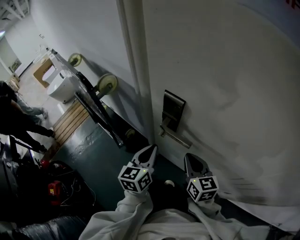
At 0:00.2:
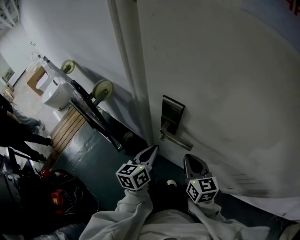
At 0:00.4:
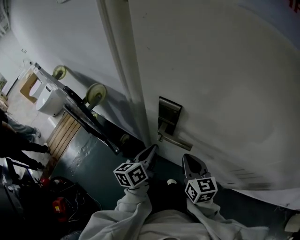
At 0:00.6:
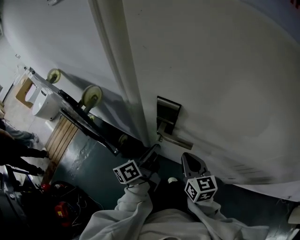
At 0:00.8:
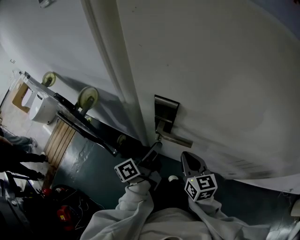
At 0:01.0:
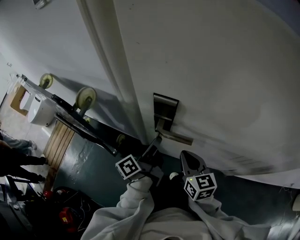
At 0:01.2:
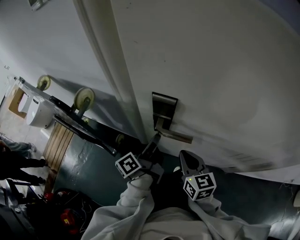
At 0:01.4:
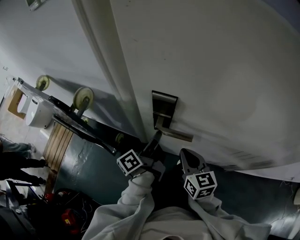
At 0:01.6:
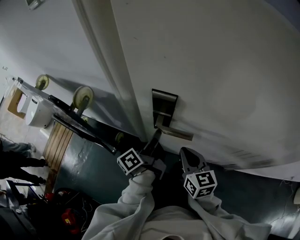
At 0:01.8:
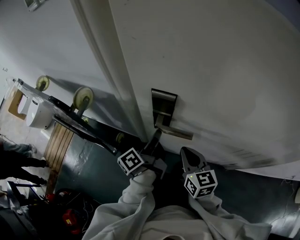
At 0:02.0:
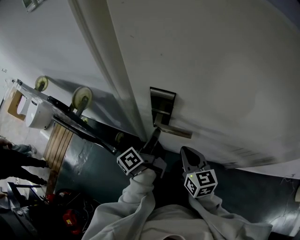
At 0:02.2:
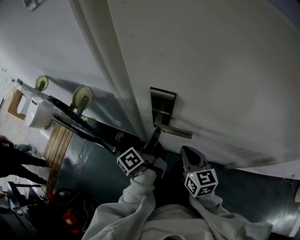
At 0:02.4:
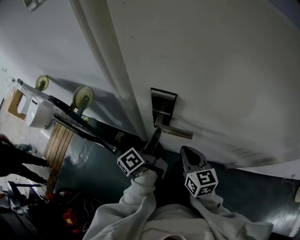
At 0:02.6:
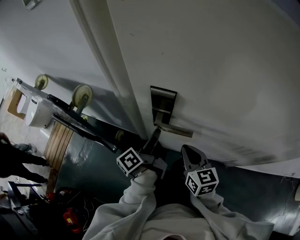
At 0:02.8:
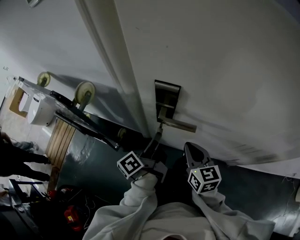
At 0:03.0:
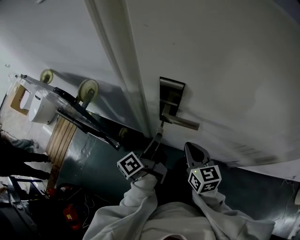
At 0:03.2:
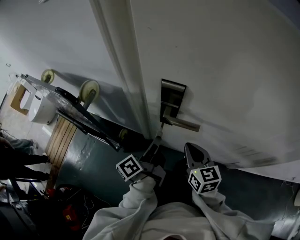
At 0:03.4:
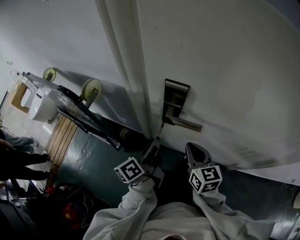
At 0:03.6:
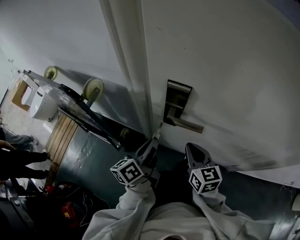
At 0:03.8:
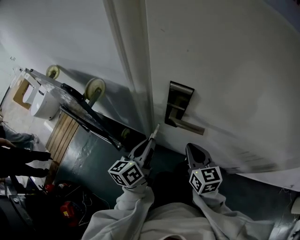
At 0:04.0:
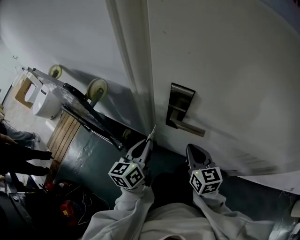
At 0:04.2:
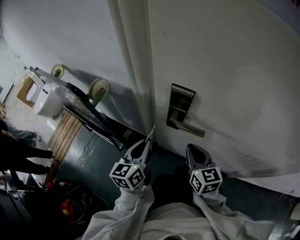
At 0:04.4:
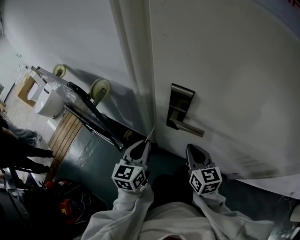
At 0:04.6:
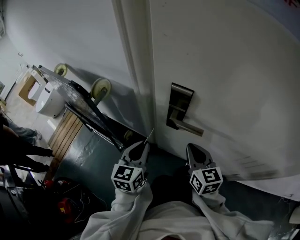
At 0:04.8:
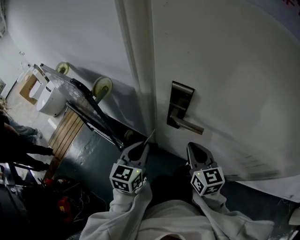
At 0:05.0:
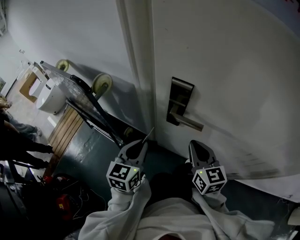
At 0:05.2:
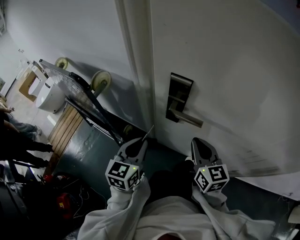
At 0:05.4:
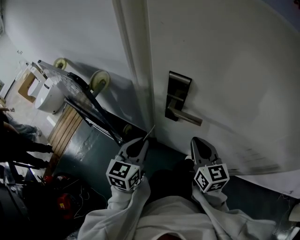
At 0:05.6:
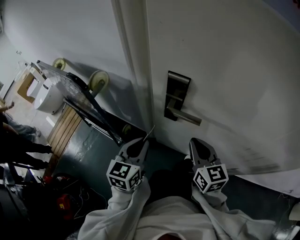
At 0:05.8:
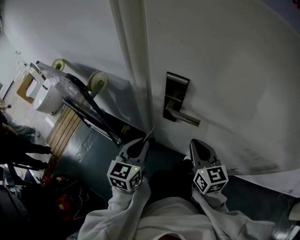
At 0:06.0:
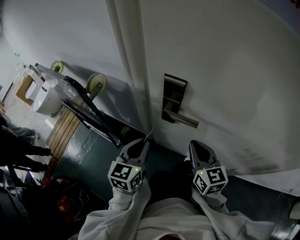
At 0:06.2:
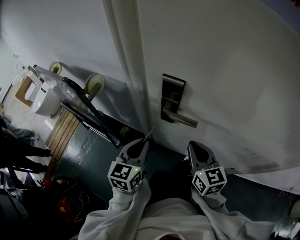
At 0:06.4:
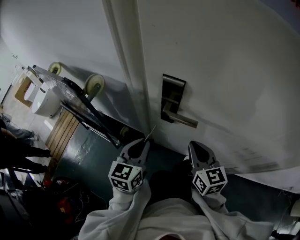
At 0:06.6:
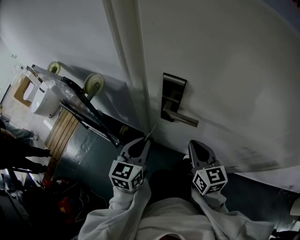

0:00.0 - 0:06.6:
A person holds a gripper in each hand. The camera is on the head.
0:00.0 - 0:01.6: The left gripper shifts about 5 cm forward, rolls counterclockwise, seen from behind, by about 60 degrees, and opens, then closes once more.
0:01.6 - 0:03.2: The left gripper shifts roughly 5 cm backward.
0:03.2 - 0:05.0: The left gripper is displaced to the left by approximately 5 cm, and rolls clockwise, seen from behind, by approximately 70 degrees.
0:05.0 - 0:06.6: There are only small adjustments of the grippers.

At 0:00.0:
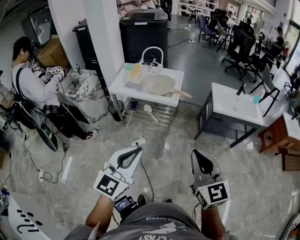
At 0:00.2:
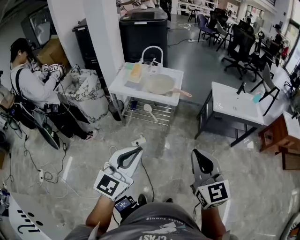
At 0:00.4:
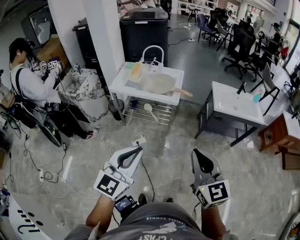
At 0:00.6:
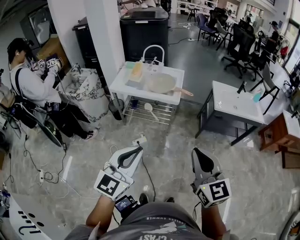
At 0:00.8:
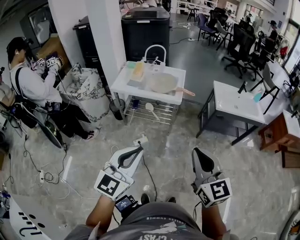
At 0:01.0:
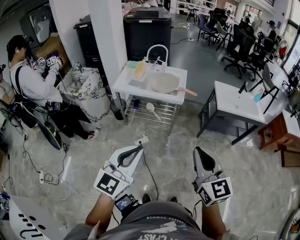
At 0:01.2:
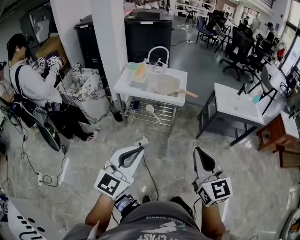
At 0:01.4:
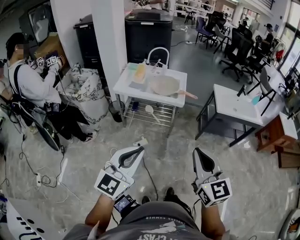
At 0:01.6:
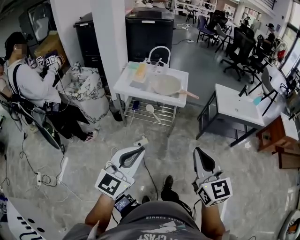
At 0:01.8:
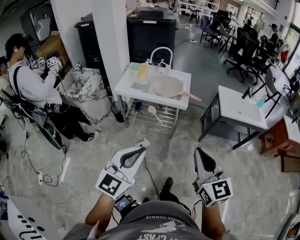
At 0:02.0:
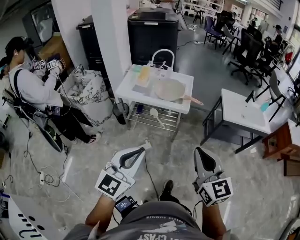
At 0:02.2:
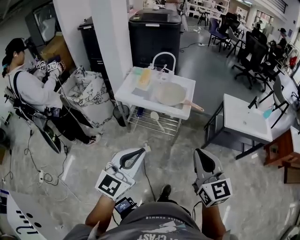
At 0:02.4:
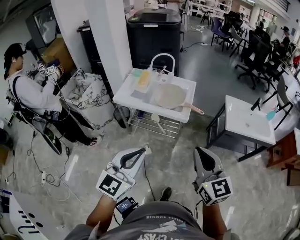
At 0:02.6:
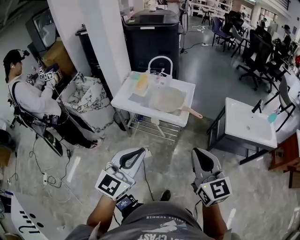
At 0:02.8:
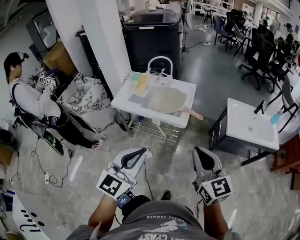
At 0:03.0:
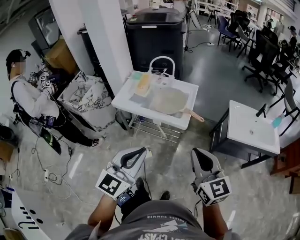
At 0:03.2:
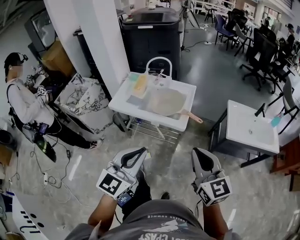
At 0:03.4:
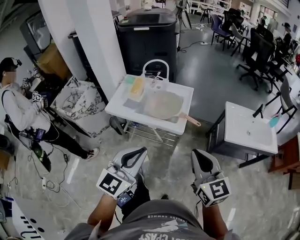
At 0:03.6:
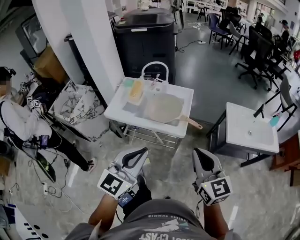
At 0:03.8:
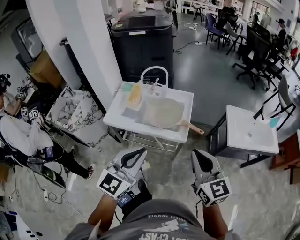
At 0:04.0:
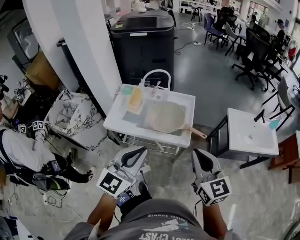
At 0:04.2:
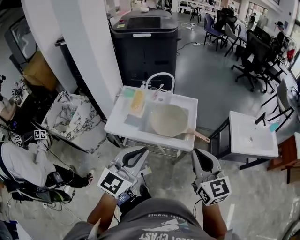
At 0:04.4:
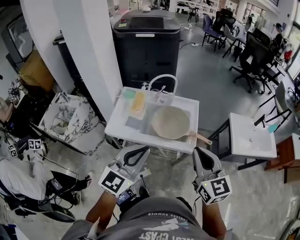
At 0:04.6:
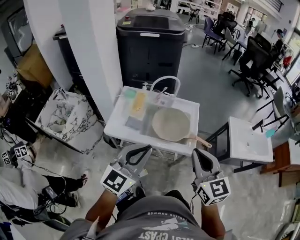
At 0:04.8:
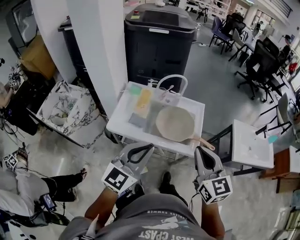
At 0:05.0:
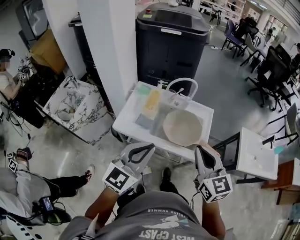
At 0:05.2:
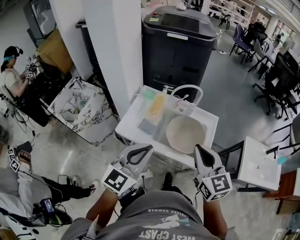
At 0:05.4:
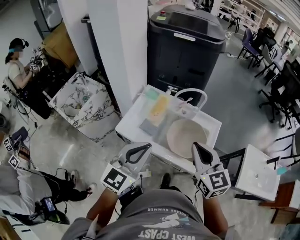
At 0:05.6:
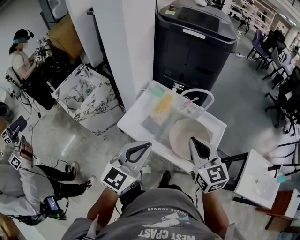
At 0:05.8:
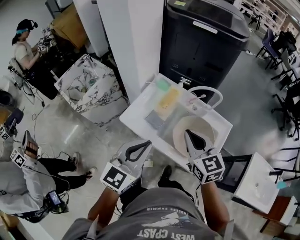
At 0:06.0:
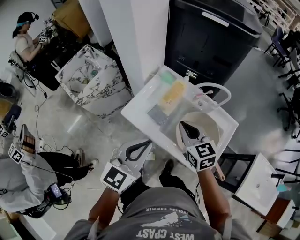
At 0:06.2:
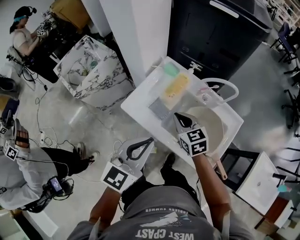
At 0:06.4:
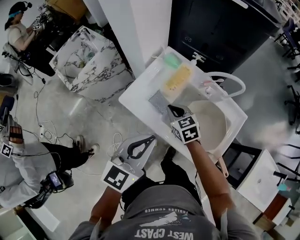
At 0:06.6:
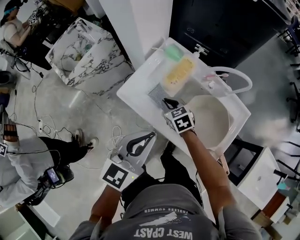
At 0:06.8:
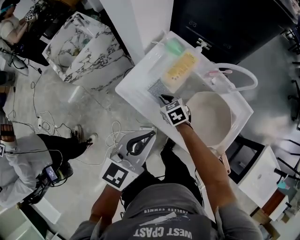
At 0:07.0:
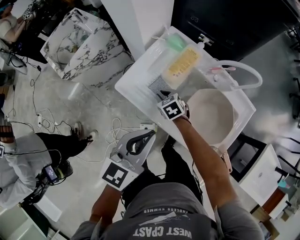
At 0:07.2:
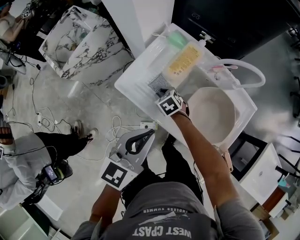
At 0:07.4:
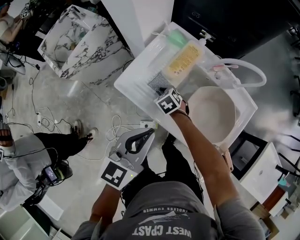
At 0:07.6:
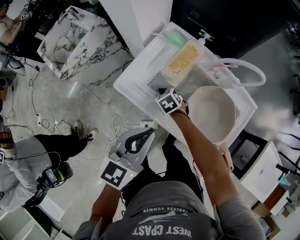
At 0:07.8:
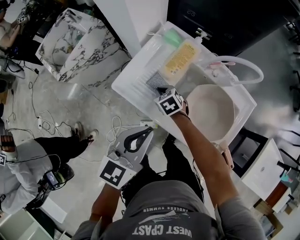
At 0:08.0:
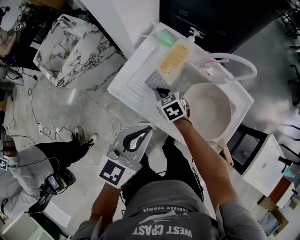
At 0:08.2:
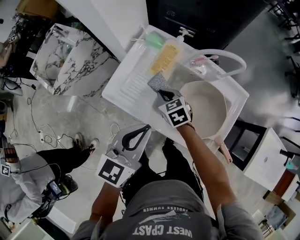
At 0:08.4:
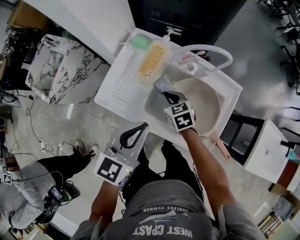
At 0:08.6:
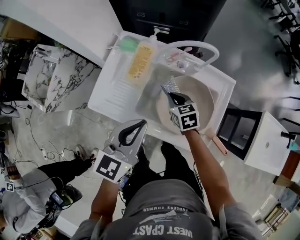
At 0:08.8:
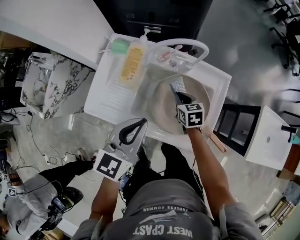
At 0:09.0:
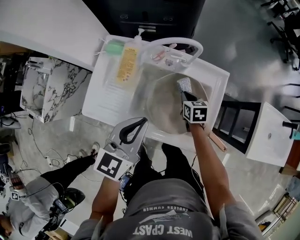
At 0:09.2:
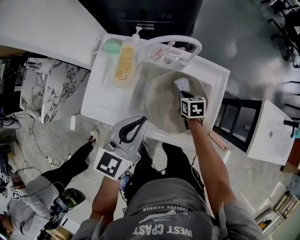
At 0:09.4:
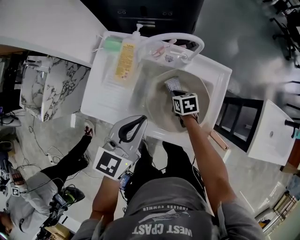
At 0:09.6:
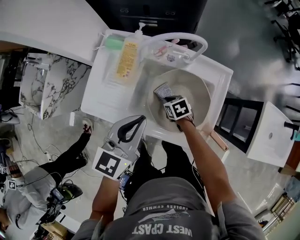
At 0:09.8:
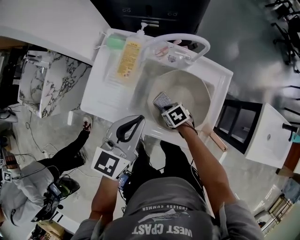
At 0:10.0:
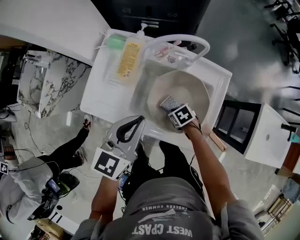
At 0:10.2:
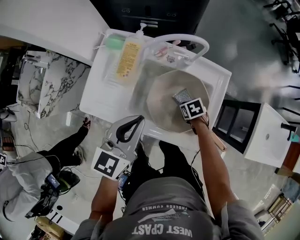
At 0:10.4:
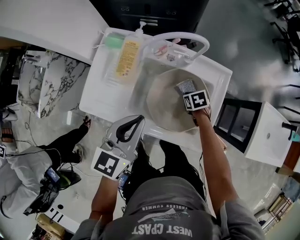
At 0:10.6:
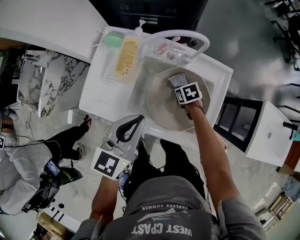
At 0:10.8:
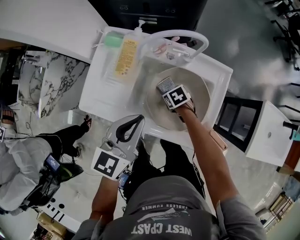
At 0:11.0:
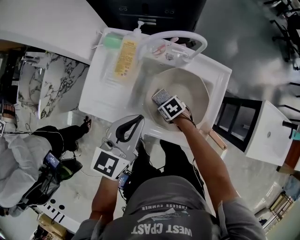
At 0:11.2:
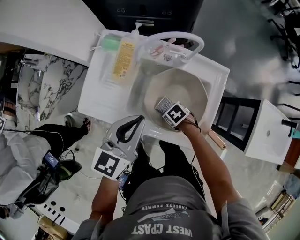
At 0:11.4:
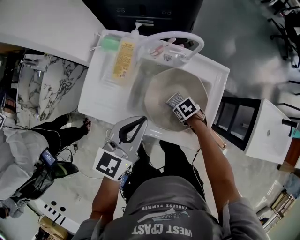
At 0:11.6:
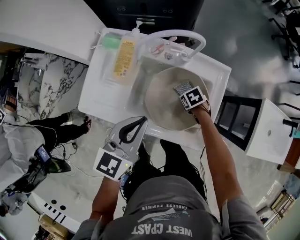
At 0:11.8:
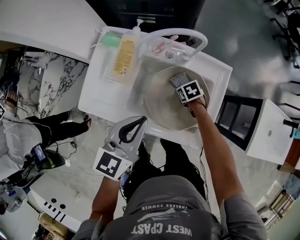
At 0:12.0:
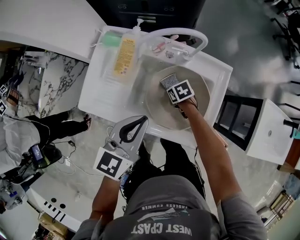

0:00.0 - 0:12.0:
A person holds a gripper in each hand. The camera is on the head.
0:00.0 - 0:01.6: Both grippers move to the left, about 10 cm.
0:01.6 - 0:03.0: The grippers both shift forward and to the right by roughly 30 cm.
0:03.0 - 0:04.4: The grippers both shift forward and to the left by about 30 cm.
0:04.4 - 0:06.0: The right gripper changes place by roughly 40 cm, and rotates about 40 degrees, while the left gripper shifts by about 20 cm, and turns by some 30 degrees.
0:06.0 - 0:07.6: The left gripper shifts some 15 cm downward; the right gripper is displaced downward by approximately 35 cm, points its fingers roughly 30 degrees further downward, and opens, then closes once more.
0:07.6 - 0:09.0: The left gripper shifts by roughly 15 cm, and rotates roughly 20 degrees, while the right gripper travels upward and back again, about 10 cm each way, and rotates around the line of its fingers by some 50 degrees, clockwise from behind.
0:09.0 - 0:10.4: The right gripper heads downward, covering about 5 cm, and turns by some 20 degrees.

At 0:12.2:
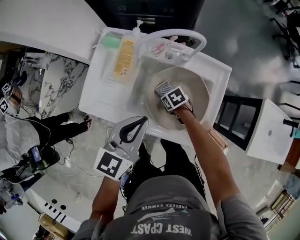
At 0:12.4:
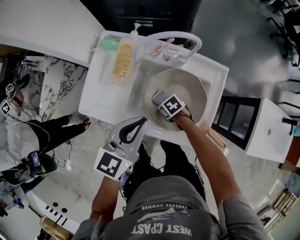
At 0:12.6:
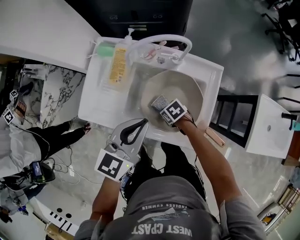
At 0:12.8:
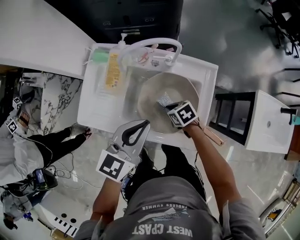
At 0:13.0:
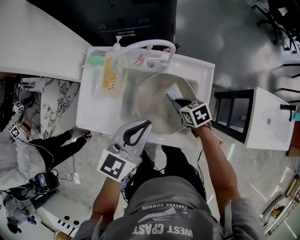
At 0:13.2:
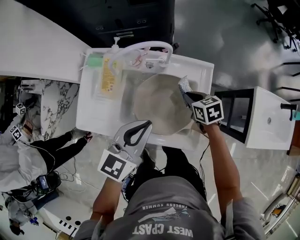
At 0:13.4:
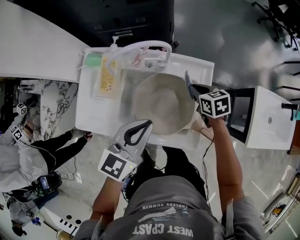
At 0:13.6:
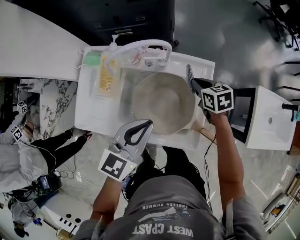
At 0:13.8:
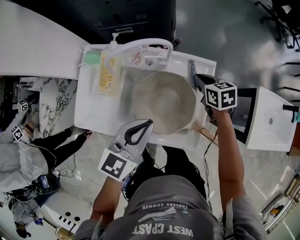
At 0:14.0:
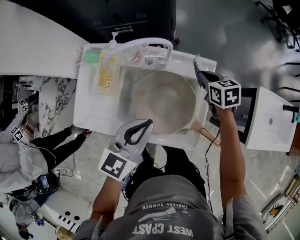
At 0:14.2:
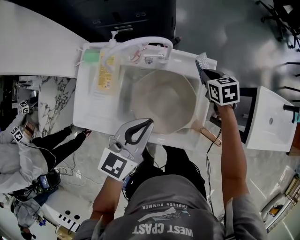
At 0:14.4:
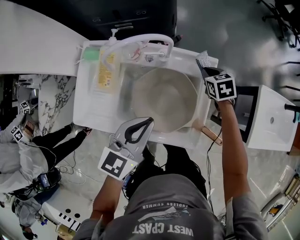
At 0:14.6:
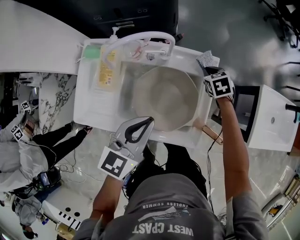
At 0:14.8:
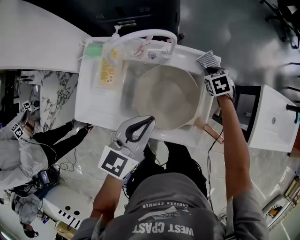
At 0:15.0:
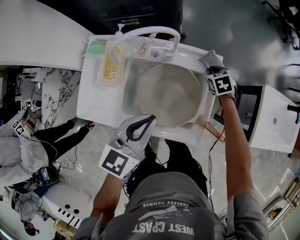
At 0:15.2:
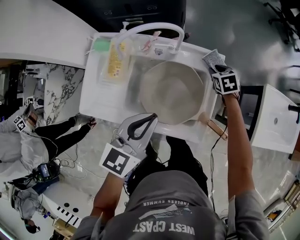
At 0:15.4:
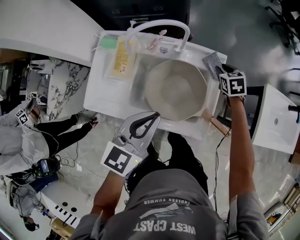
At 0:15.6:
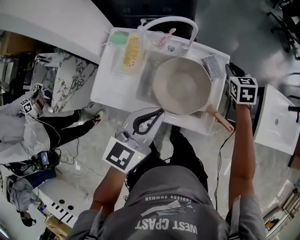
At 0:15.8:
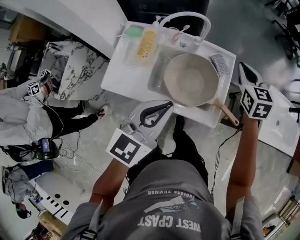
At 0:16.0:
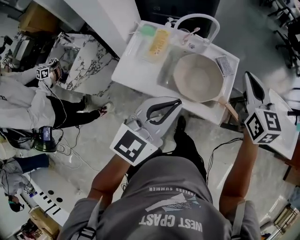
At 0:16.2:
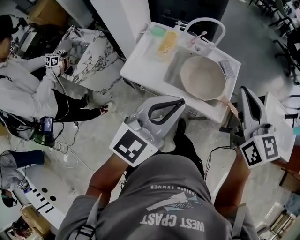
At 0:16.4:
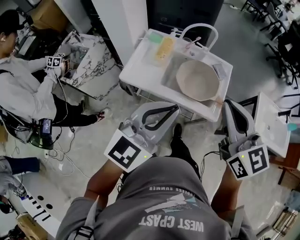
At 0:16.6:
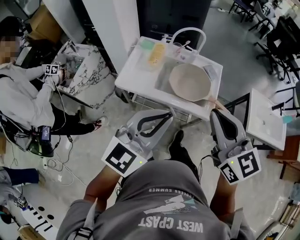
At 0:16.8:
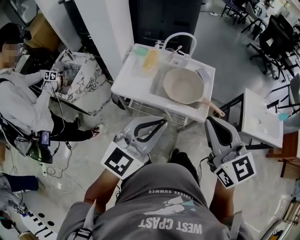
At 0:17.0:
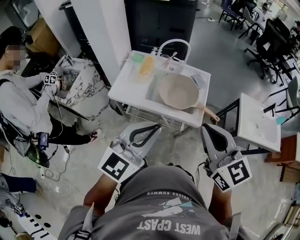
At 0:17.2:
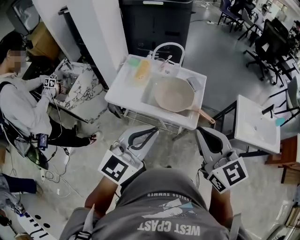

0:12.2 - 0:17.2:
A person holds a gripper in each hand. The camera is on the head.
0:12.2 - 0:13.8: The left gripper ends up some 10 cm from where it was, while the right gripper ends up roughly 30 cm from where it was, and swivels about 30 degrees.
0:13.8 - 0:15.6: The left gripper moves backward and upward, roughly 10 cm. Meanwhile the right gripper moves upward and to the right, approximately 10 cm, and changes its angle by about 20 degrees.
0:15.6 - 0:17.2: The left gripper moves backward and upward, approximately 35 cm, and rotates roughly 20 degrees. The right gripper shifts about 60 cm backward and upward, and angles its fingers upward, by approximately 30 degrees.
